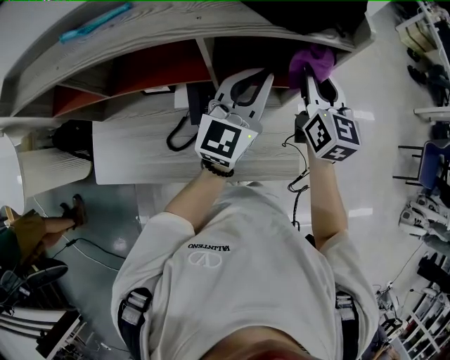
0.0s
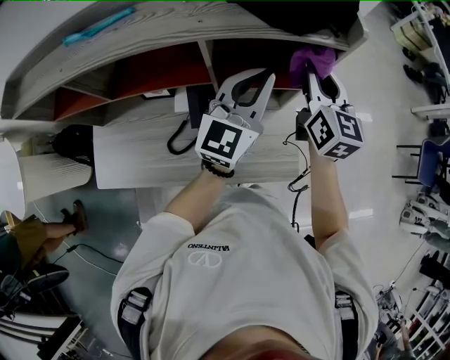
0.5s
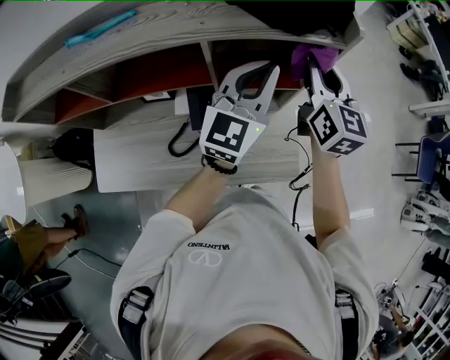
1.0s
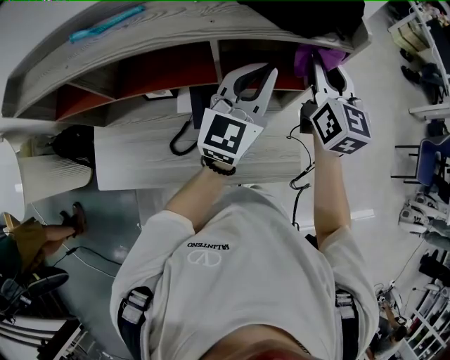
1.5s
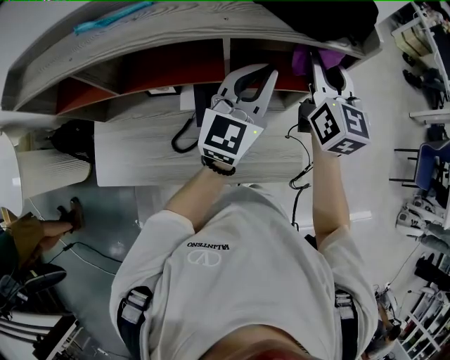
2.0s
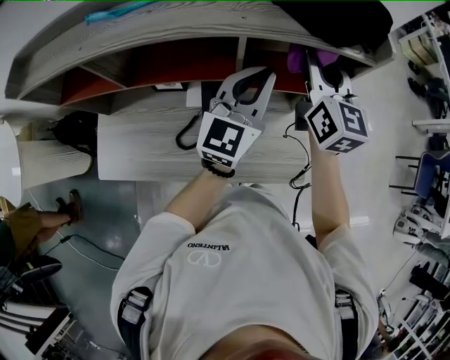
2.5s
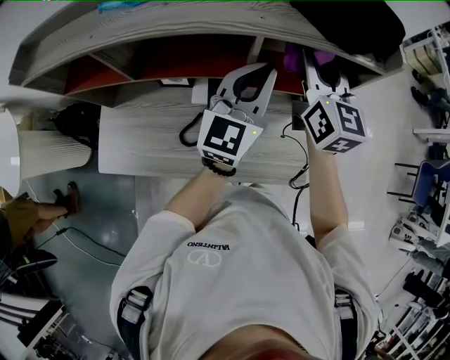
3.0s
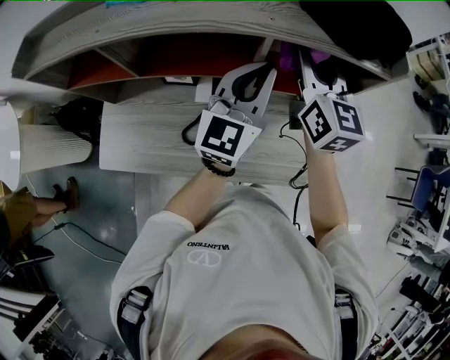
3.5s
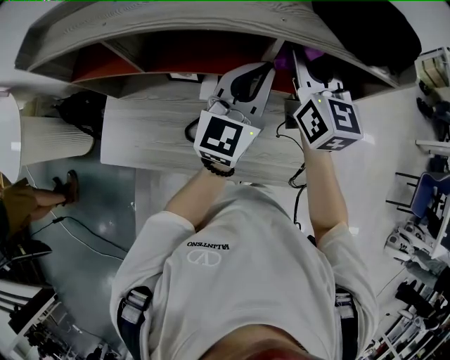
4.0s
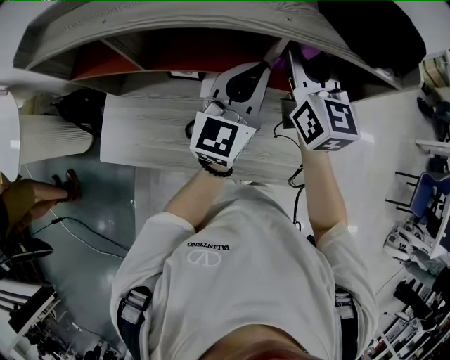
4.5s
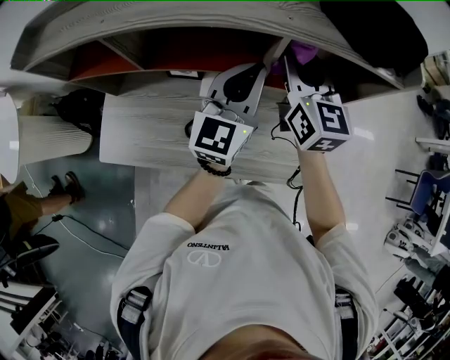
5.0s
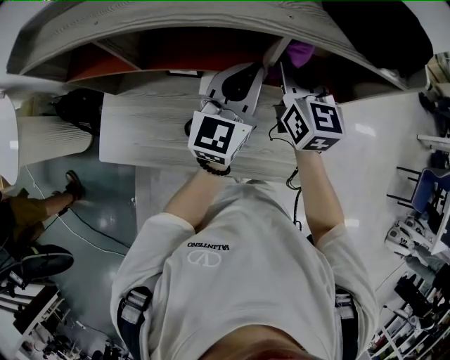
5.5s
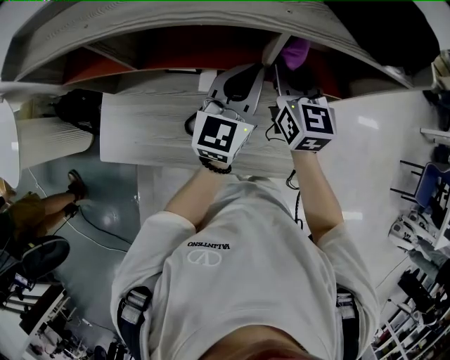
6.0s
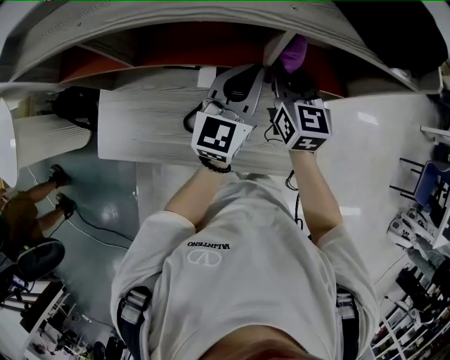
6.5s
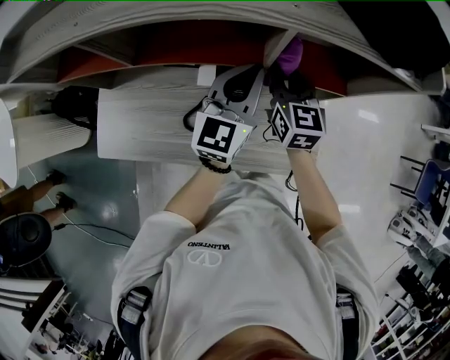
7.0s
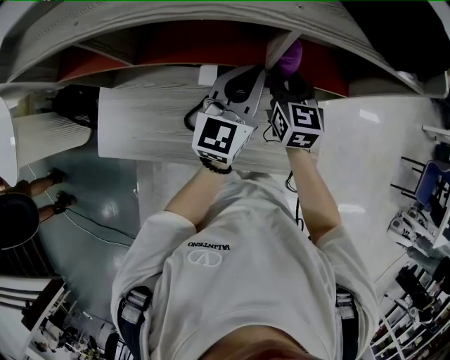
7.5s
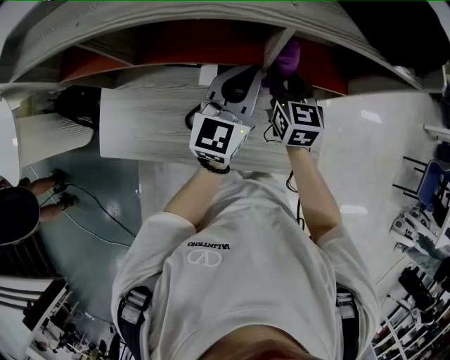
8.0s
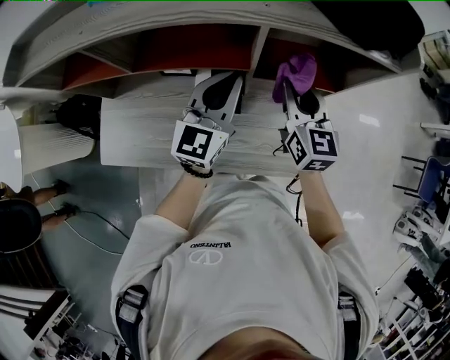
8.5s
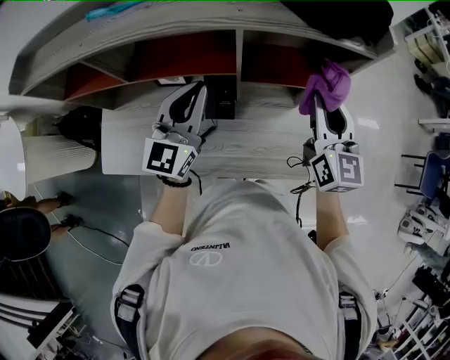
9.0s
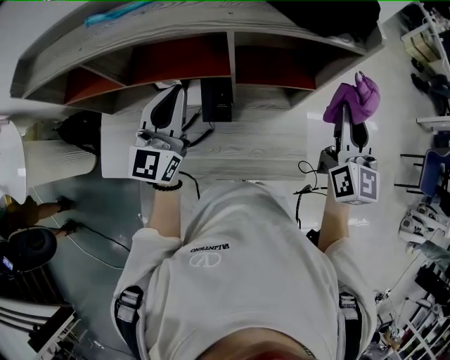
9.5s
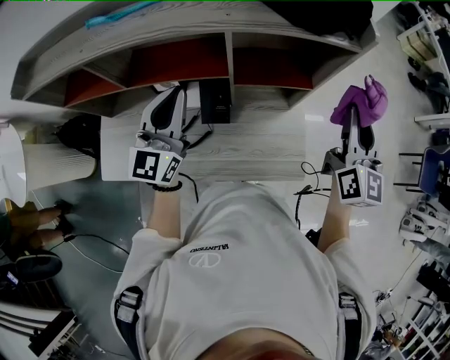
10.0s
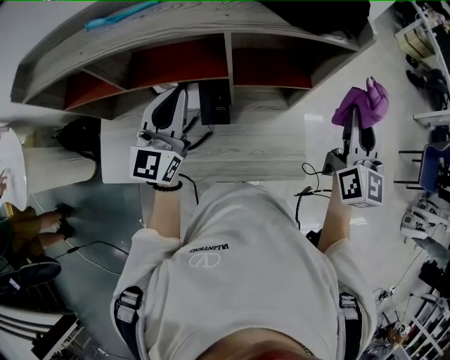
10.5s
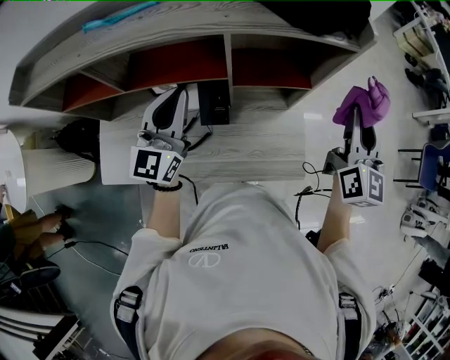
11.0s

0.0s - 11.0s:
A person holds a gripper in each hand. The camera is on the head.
0.0s - 2.0s: The right gripper goes roughly 5 cm upward.
2.0s - 3.5s: Both grippers move to the left, approximately 10 cm.
3.5s - 5.5s: The left gripper ends up approximately 5 cm from where it was, while the right gripper shifts some 5 cm downward.
5.5s - 7.5s: The right gripper is displaced downward by some 10 cm. The left gripper travels downward by about 5 cm.
7.5s - 9.0s: The left gripper goes about 10 cm backward and upward. Meanwhile the right gripper is displaced to the right, upward and backward by approximately 20 cm.
9.0s - 11.0s: The right gripper moves to the right, roughly 10 cm.

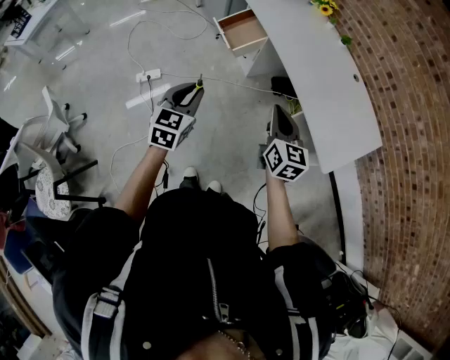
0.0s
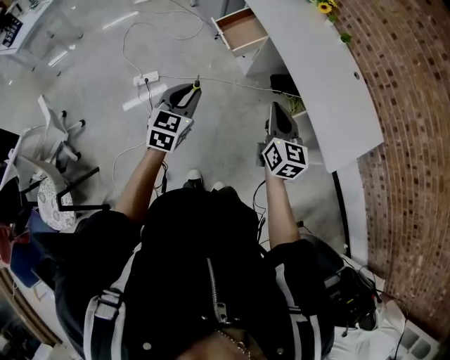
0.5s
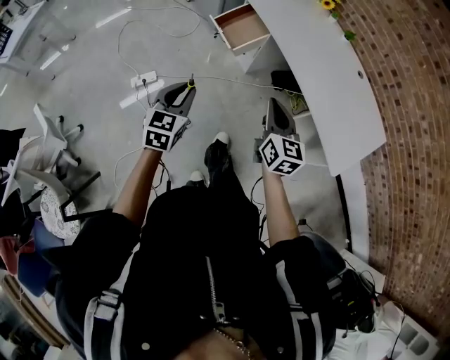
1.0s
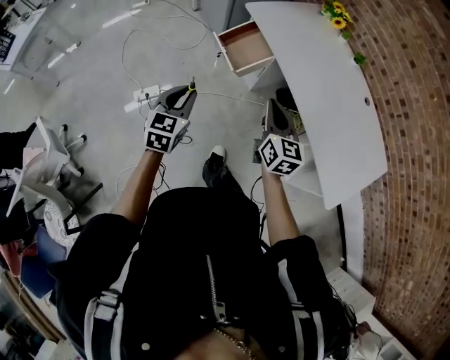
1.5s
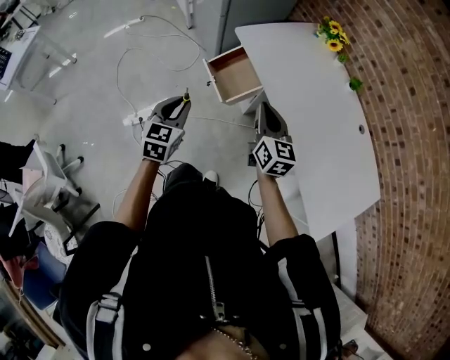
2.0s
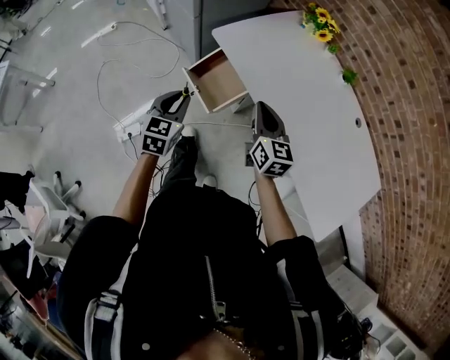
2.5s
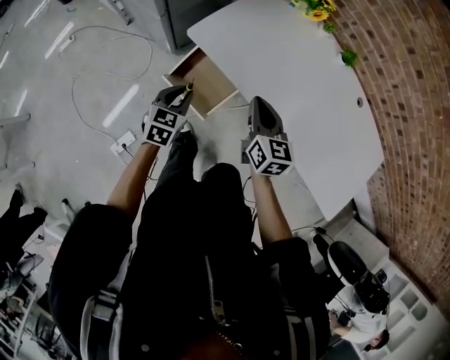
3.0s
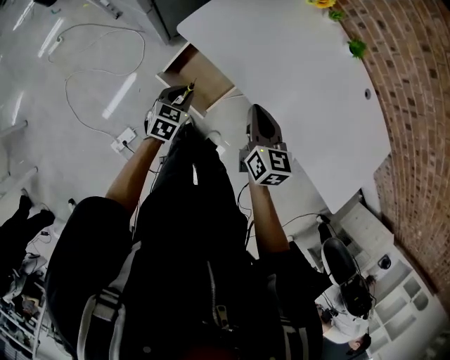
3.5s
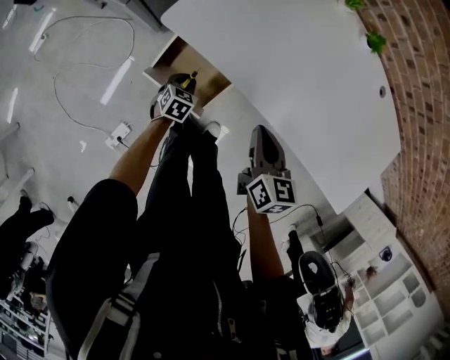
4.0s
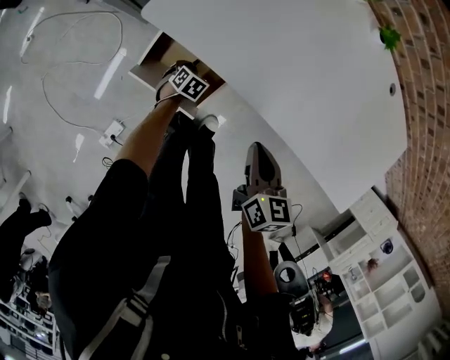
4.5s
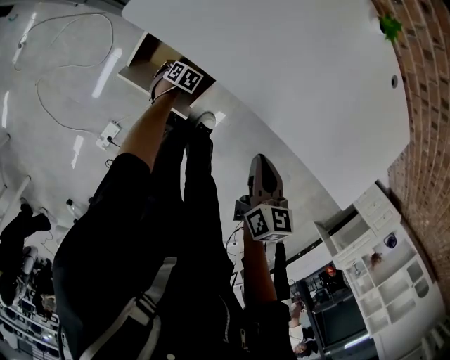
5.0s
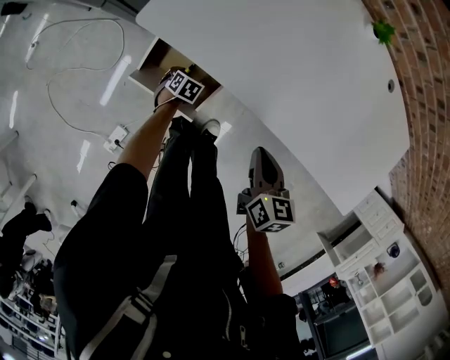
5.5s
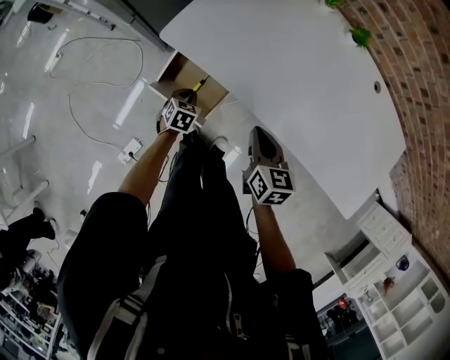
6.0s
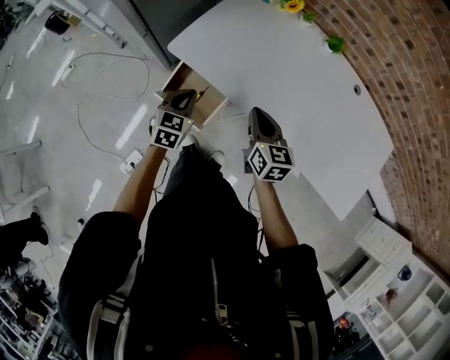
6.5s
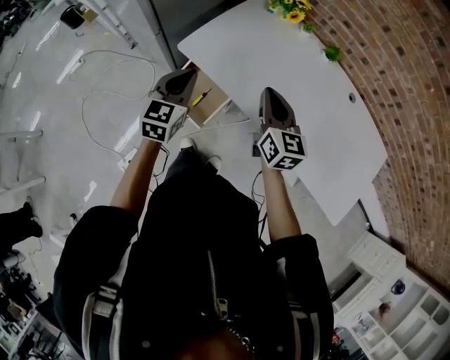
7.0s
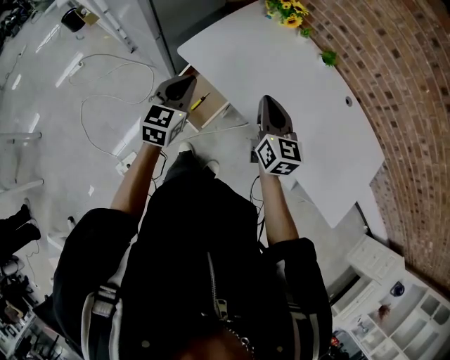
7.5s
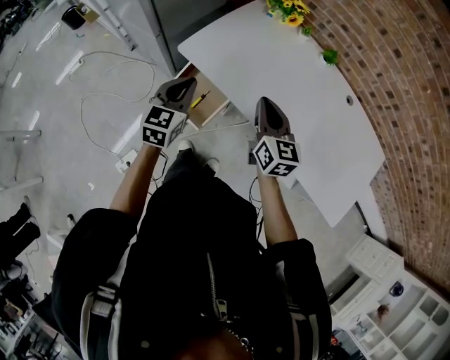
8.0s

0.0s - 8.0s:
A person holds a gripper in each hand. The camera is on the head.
0.0s - 2.0s: The grippers both shift forward by roughly 35 cm.
2.0s - 4.0s: The right gripper moves roughly 25 cm, and changes its angle by some 40 degrees. The left gripper heads downward, covering roughly 40 cm, and tips its fingers downward by approximately 30 degrees.
4.0s - 6.0s: The left gripper moves some 20 cm downward and comes back.
6.0s - 8.0s: The right gripper is displaced upward by about 15 cm, and turns by approximately 30 degrees. Meanwhile the left gripper shifts about 35 cm upward, and tilts its fingers about 40 degrees upward.

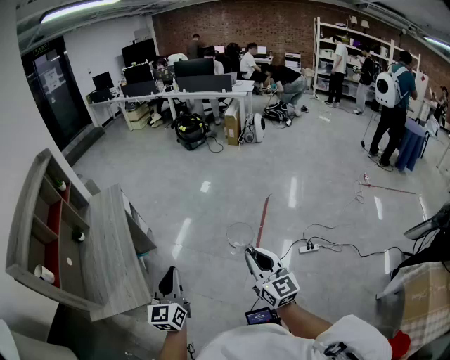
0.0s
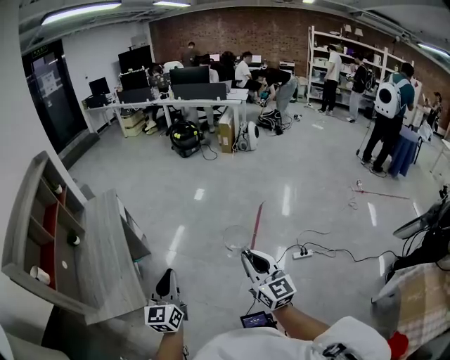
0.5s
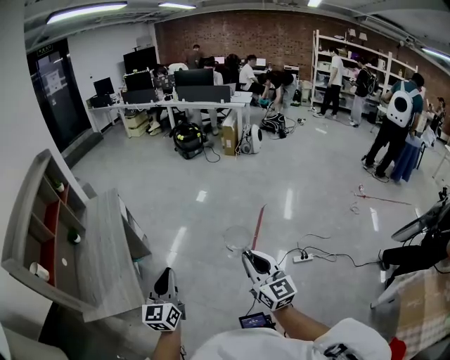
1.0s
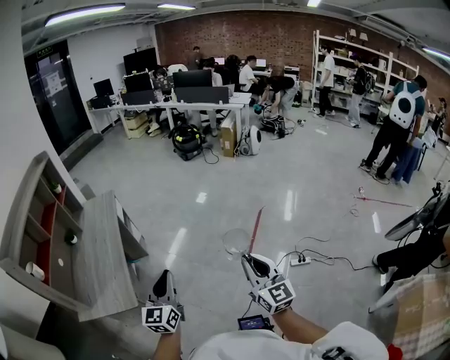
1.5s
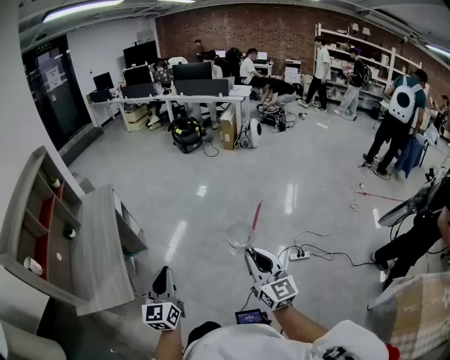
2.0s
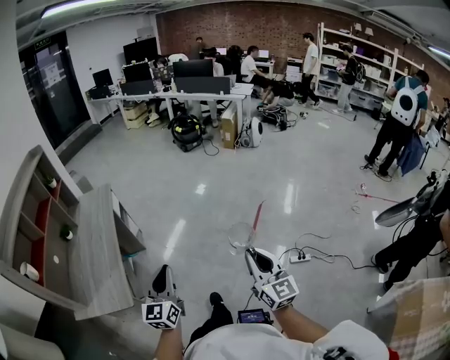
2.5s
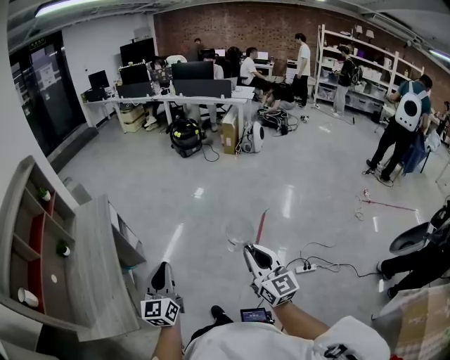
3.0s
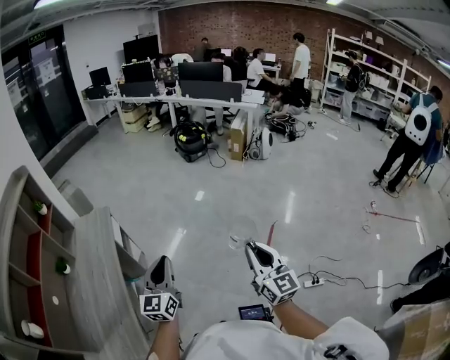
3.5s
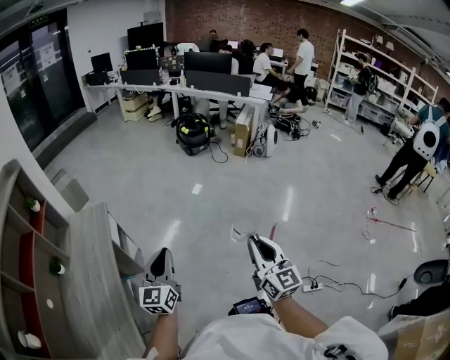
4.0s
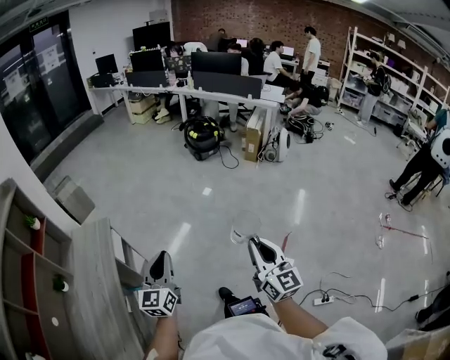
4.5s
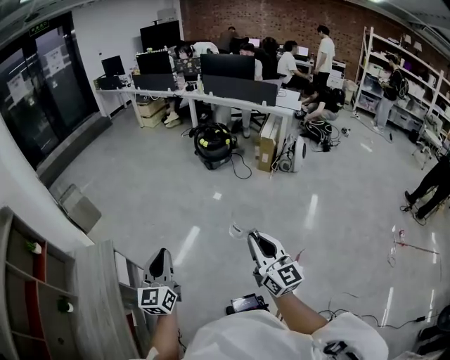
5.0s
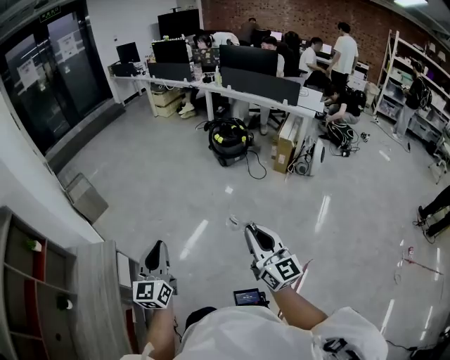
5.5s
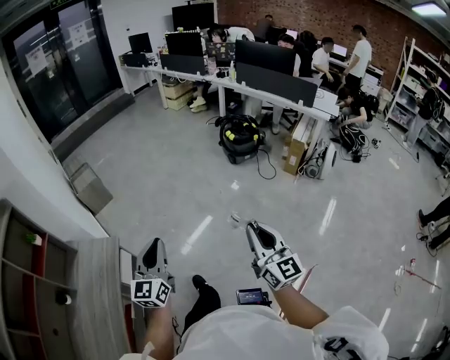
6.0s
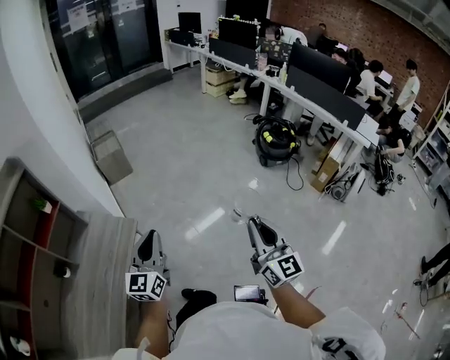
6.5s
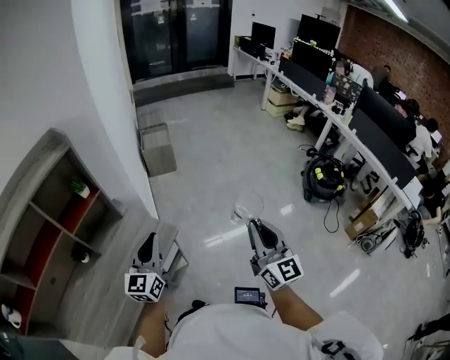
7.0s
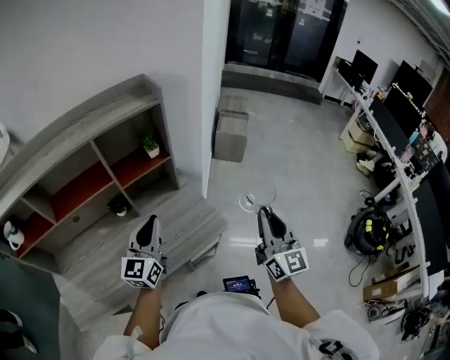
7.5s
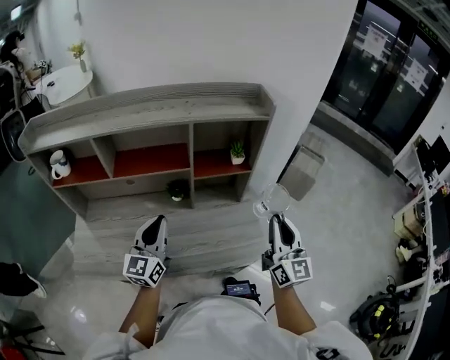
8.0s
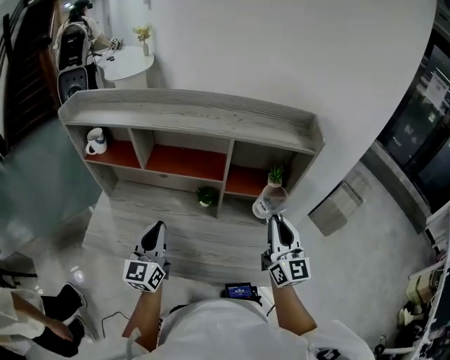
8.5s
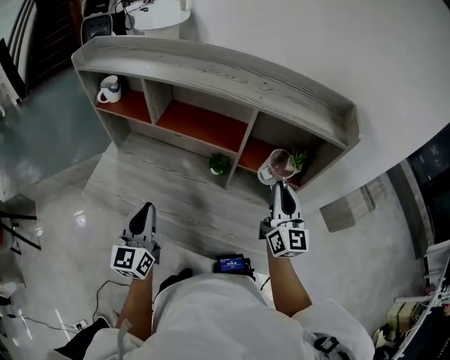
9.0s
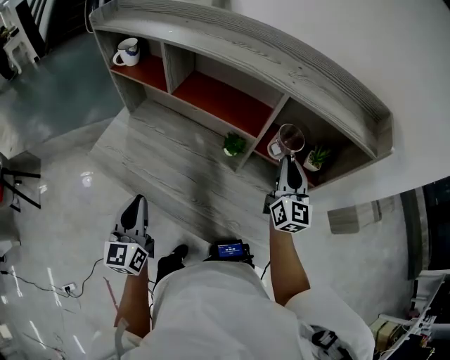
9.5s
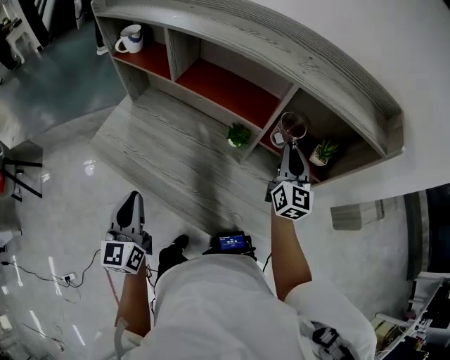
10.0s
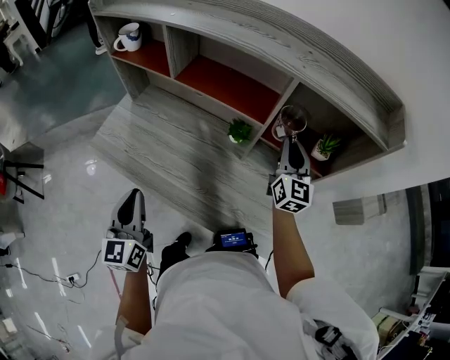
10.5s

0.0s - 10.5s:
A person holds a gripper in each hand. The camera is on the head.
0.0s - 2.0s: The two grippers go some 5 cm to the right.
2.0s - 4.0s: The two grippers travel together, forward, some 40 cm.
4.0s - 6.5s: Both grippers are carried roughly 50 cm. The left gripper rotates about 30 degrees; the right gripper rotates about 30 degrees.
6.5s - 8.5s: The left gripper ends up some 50 cm from where it was, and turns by some 90 degrees, while the right gripper ends up some 70 cm from where it was, and swivels about 80 degrees.
8.5s - 10.5s: The right gripper is displaced forward and downward by approximately 20 cm; the left gripper heads backward, to the left and downward, covering about 15 cm, and turns by about 30 degrees.
